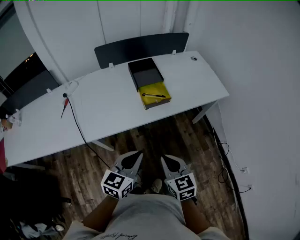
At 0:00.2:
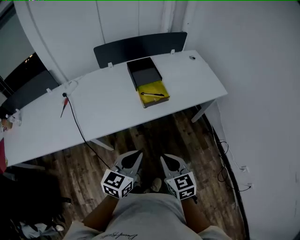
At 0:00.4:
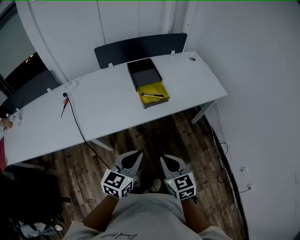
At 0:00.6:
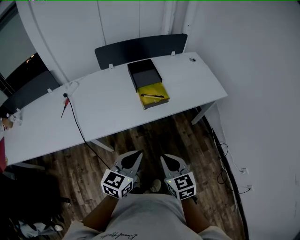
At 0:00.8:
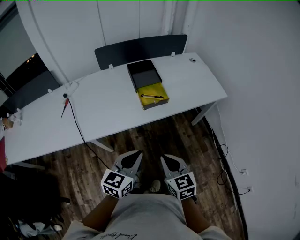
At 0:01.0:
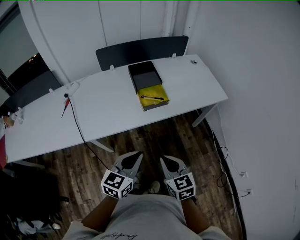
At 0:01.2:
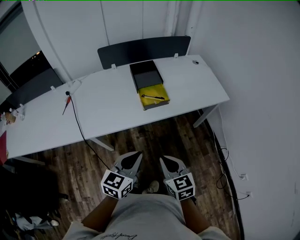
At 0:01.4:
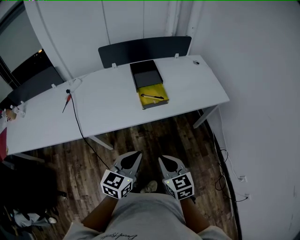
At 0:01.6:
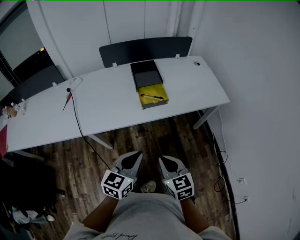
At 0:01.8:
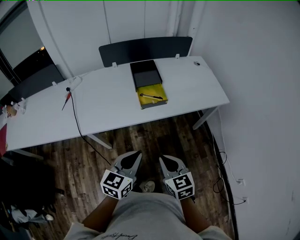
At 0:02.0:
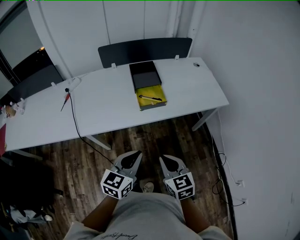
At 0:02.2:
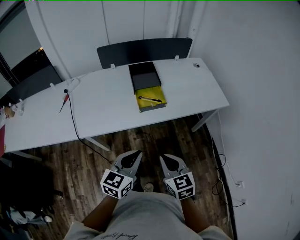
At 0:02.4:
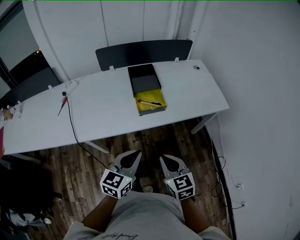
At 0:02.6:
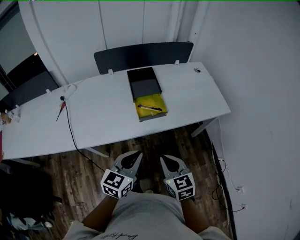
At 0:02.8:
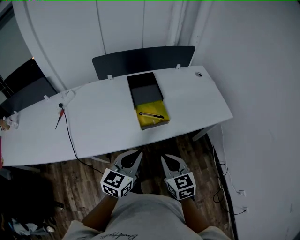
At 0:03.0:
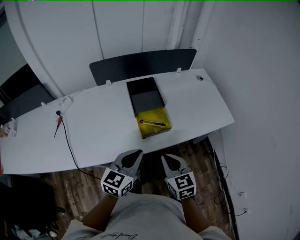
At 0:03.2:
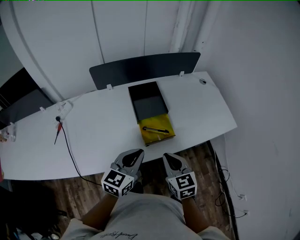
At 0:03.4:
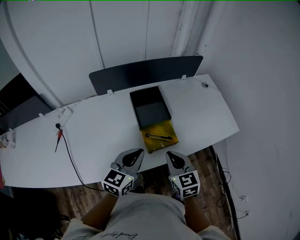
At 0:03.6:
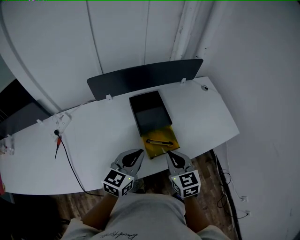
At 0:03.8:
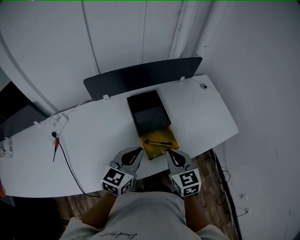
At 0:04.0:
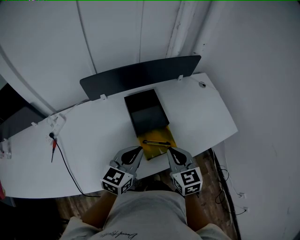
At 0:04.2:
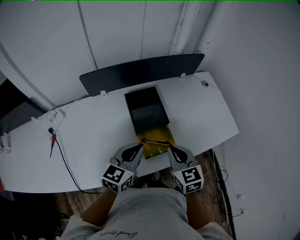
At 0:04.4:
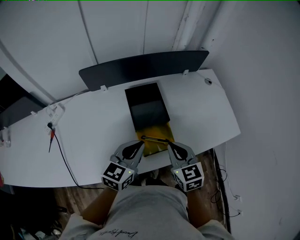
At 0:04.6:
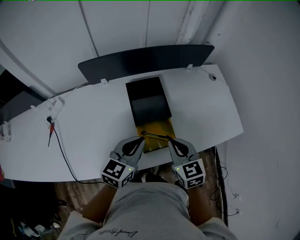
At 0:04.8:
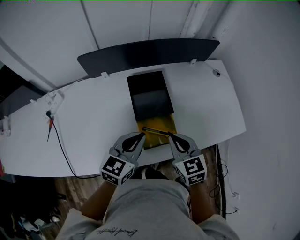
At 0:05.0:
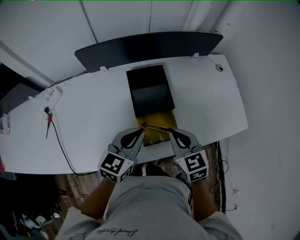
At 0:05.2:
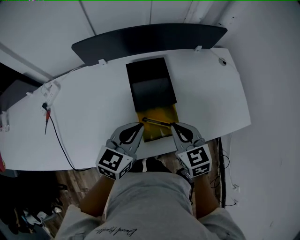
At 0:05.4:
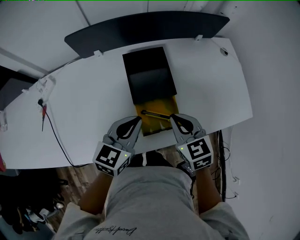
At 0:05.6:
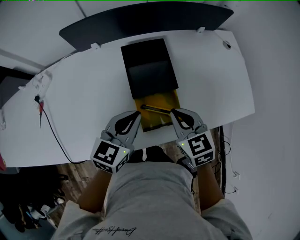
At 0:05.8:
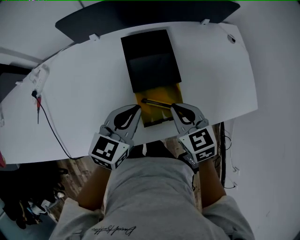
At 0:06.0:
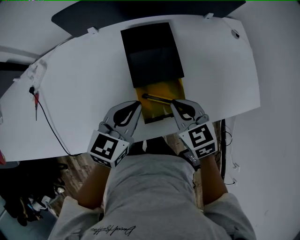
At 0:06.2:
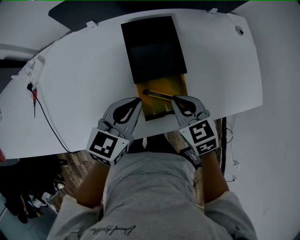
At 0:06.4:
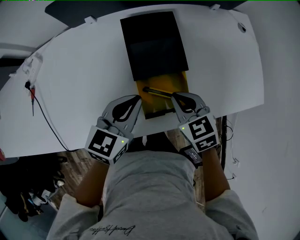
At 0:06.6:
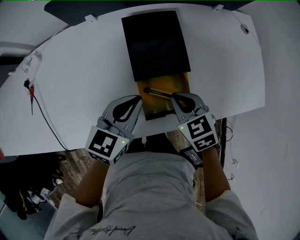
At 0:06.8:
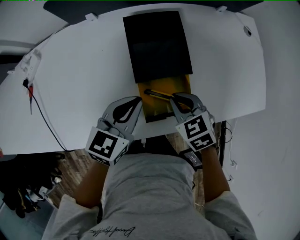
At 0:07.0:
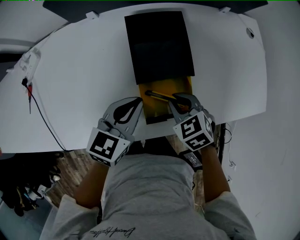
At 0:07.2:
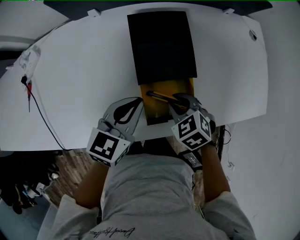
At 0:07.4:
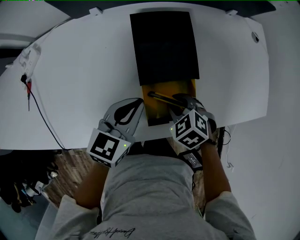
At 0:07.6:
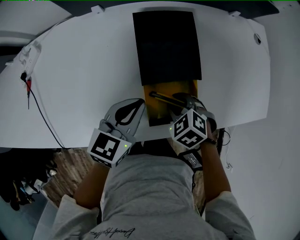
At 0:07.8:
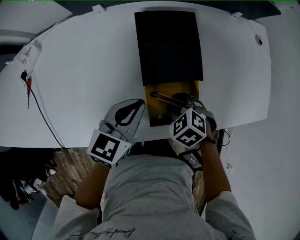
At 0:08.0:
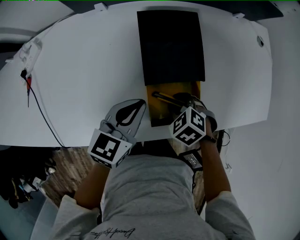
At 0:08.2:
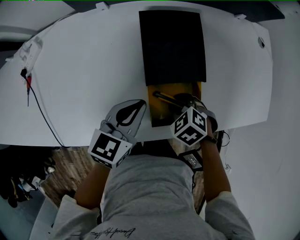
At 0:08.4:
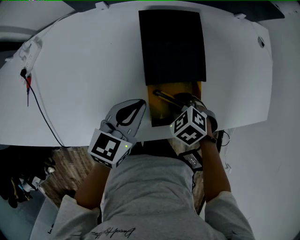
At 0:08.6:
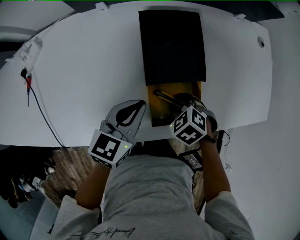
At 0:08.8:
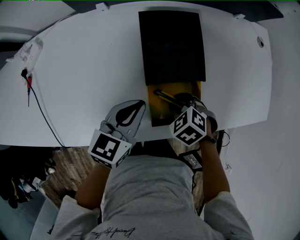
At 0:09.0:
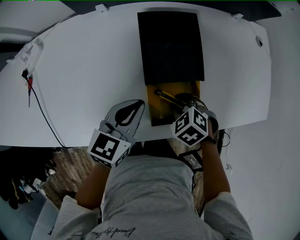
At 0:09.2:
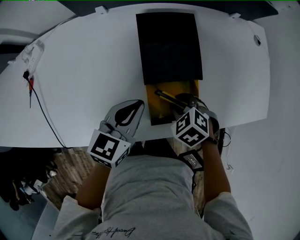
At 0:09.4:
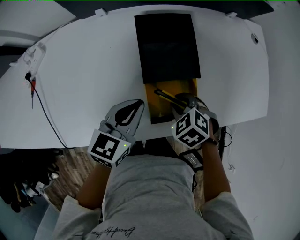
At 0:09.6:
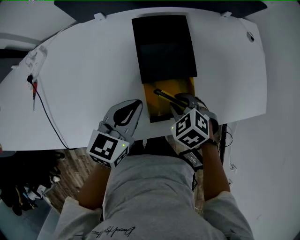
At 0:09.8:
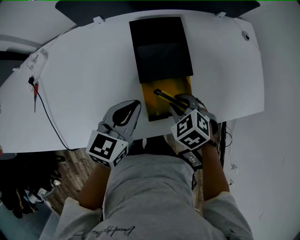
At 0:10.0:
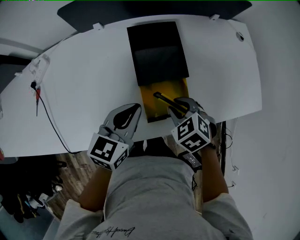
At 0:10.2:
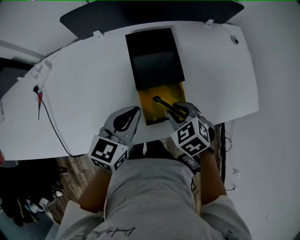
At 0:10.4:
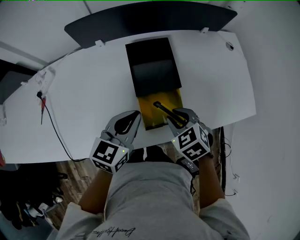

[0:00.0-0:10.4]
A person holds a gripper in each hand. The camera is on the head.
0:00.0 to 0:01.4: The grippers move only a little.
0:01.4 to 0:03.0: Both grippers move forward, about 20 cm.
0:03.0 to 0:04.4: Both grippers move forward, some 20 cm.
0:04.4 to 0:06.0: The right gripper heads downward and forward, covering some 10 cm; the left gripper shifts about 10 cm downward.
0:06.0 to 0:07.4: The left gripper is displaced downward by roughly 5 cm, while the right gripper is displaced downward by some 10 cm, rotates approximately 30 degrees, and opens.
0:07.4 to 0:09.0: There are only small adjustments of the grippers.
0:09.0 to 0:10.4: Both grippers move upward, about 10 cm. The right gripper changes its angle by roughly 20 degrees.

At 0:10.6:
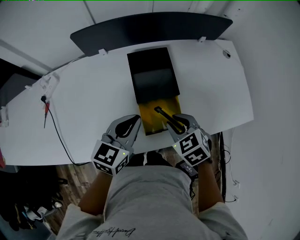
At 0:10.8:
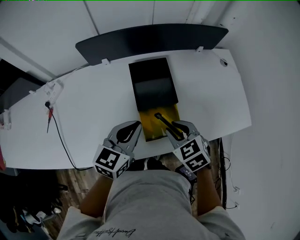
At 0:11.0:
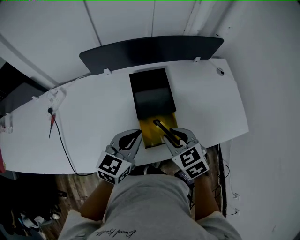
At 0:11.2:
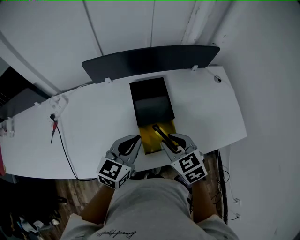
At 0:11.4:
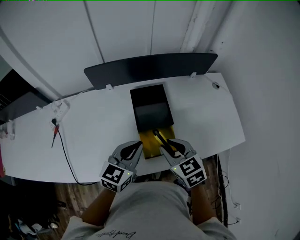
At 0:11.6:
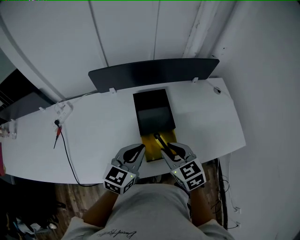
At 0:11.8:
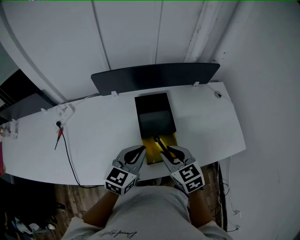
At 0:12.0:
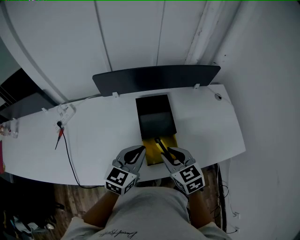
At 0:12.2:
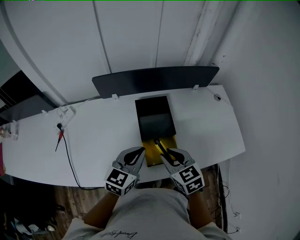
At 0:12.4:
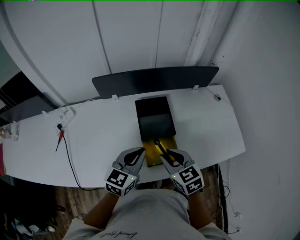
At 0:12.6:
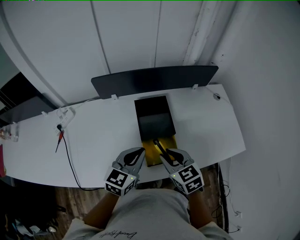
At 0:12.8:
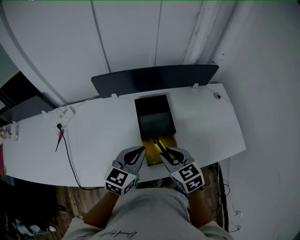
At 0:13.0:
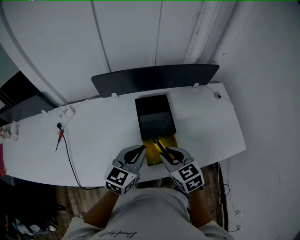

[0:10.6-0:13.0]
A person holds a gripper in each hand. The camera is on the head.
0:10.6 to 0:11.8: The left gripper shifts by about 5 cm. Meanwhile the right gripper travels upward by roughly 10 cm, and swivels some 20 degrees.
0:11.8 to 0:13.0: Both grippers stay about where they are.

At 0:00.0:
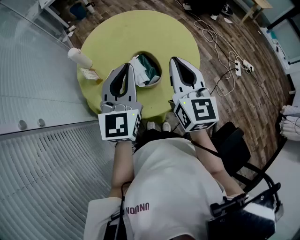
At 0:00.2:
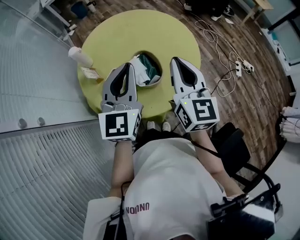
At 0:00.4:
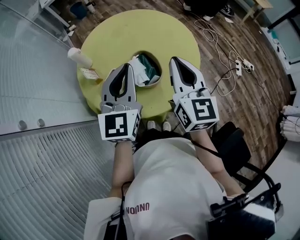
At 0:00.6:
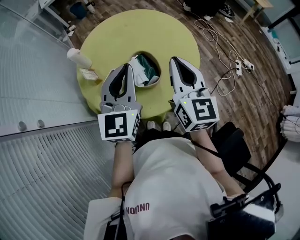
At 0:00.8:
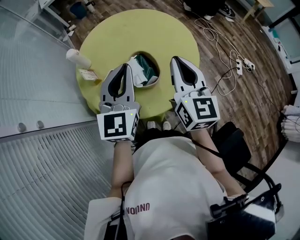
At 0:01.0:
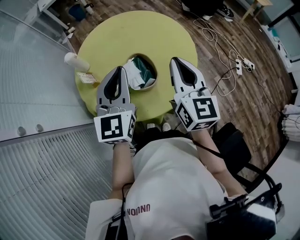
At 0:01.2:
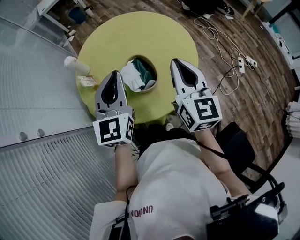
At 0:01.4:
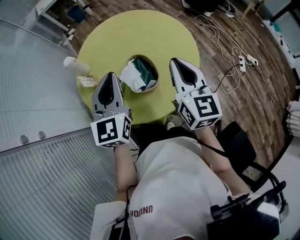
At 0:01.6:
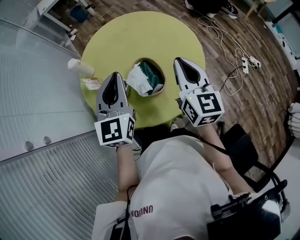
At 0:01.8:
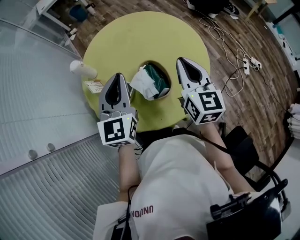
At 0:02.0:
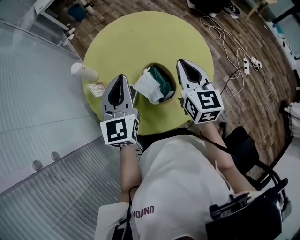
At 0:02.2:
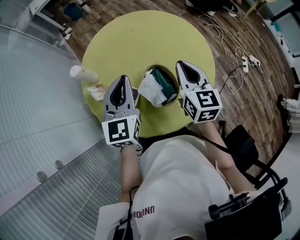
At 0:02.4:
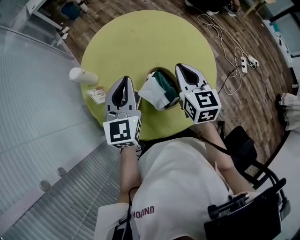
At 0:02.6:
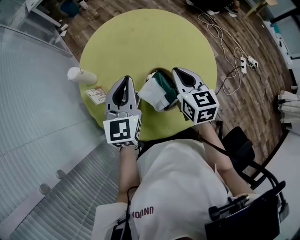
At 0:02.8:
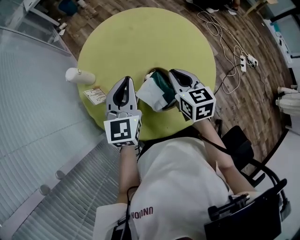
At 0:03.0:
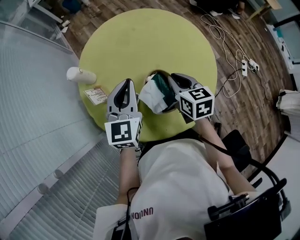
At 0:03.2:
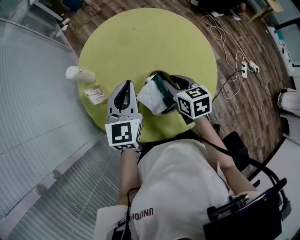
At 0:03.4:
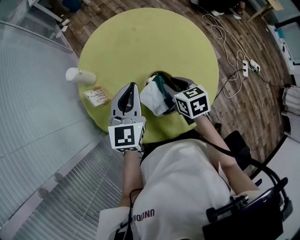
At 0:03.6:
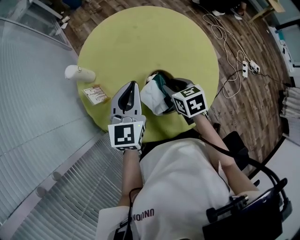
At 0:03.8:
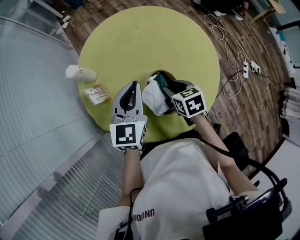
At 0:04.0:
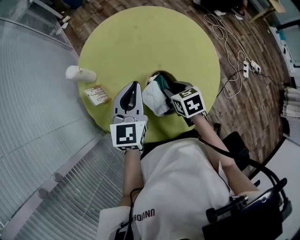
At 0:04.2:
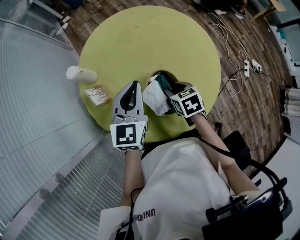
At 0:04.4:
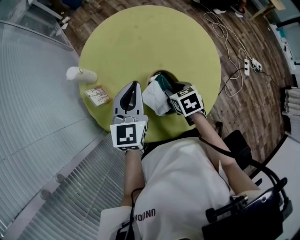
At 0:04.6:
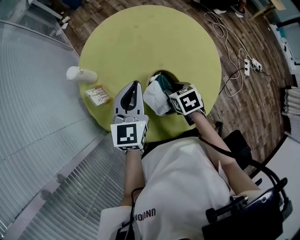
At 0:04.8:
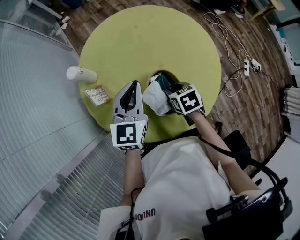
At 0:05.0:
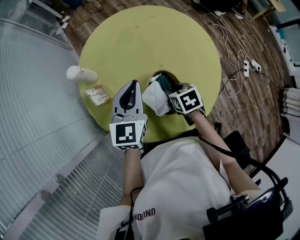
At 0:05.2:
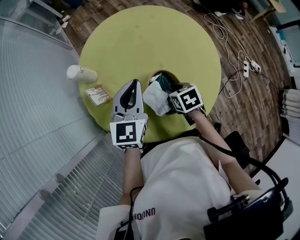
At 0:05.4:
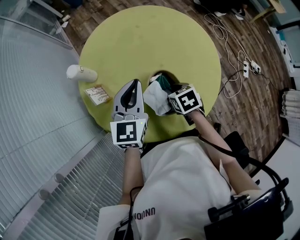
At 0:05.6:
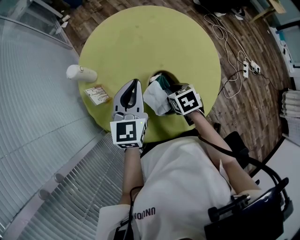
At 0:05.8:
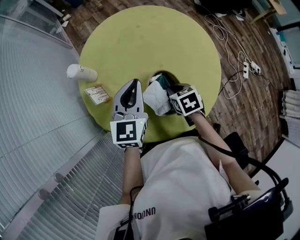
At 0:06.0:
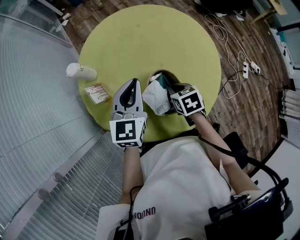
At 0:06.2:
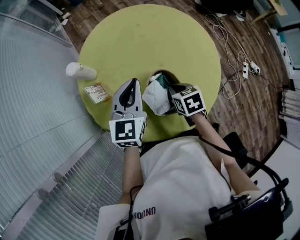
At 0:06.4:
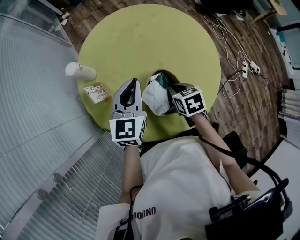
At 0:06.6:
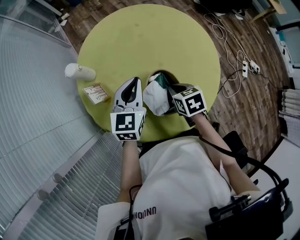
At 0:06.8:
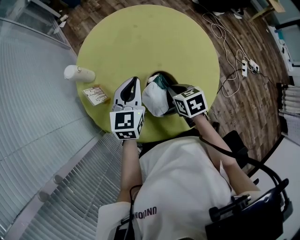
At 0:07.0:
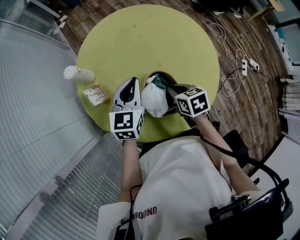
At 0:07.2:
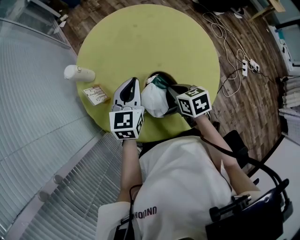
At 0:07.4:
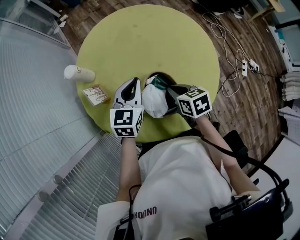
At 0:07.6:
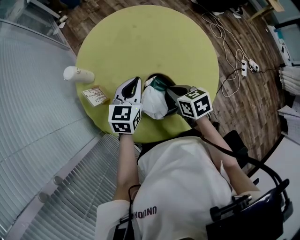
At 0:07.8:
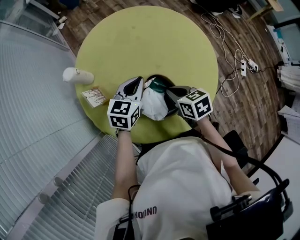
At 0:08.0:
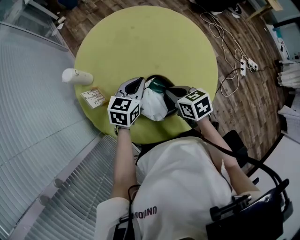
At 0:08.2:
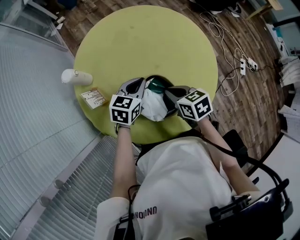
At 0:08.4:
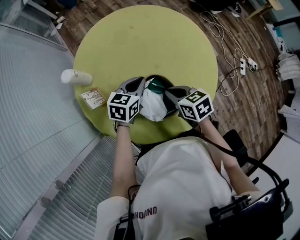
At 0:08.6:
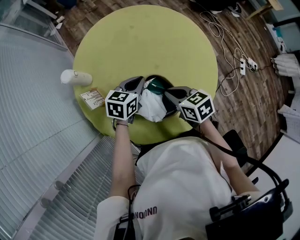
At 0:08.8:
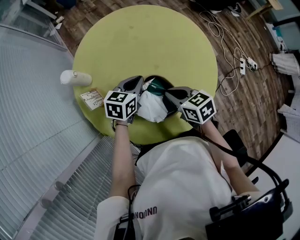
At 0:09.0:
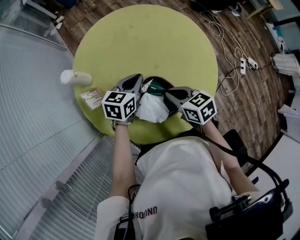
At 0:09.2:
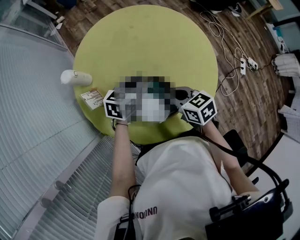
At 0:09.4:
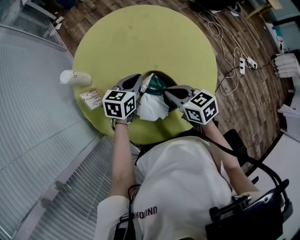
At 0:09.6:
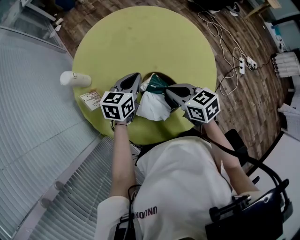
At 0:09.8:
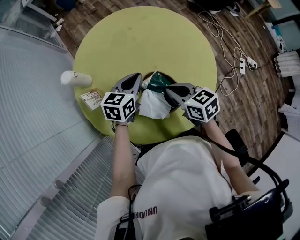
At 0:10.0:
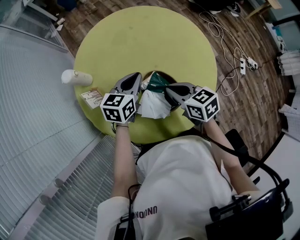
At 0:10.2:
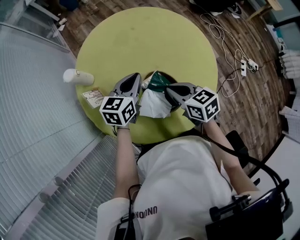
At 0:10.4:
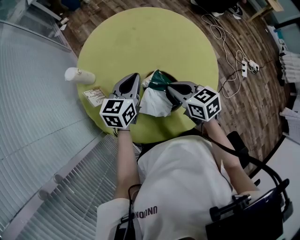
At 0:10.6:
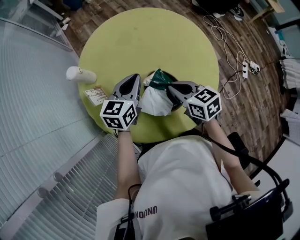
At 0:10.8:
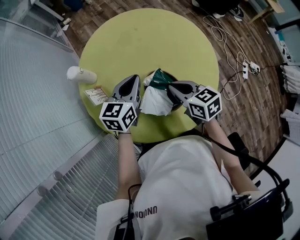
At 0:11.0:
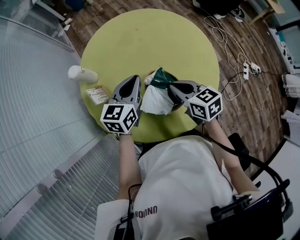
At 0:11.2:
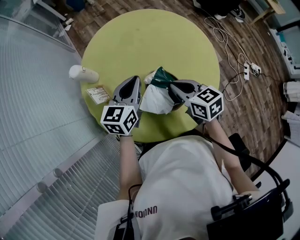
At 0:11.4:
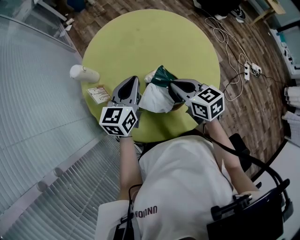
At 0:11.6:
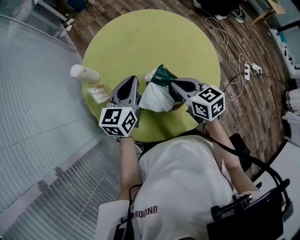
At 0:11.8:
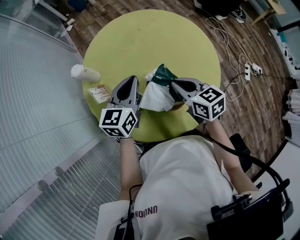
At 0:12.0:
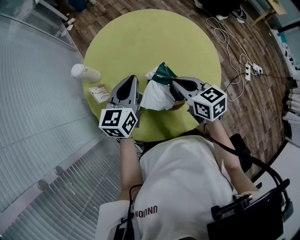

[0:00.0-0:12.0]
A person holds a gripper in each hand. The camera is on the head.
0:00.0 to 0:01.6: The left gripper shifts by approximately 5 cm. Meanwhile the right gripper moves forward, approximately 5 cm.
0:01.6 to 0:03.0: The right gripper travels downward, to the left and forward by approximately 20 cm, and changes its angle by roughly 30 degrees, while the left gripper is displaced downward and forward by some 10 cm.
0:03.0 to 0:04.4: The right gripper travels downward by roughly 10 cm, rotates some 20 degrees, and opens.
0:04.4 to 0:06.0: The right gripper closes its fingers.
0:06.0 to 0:07.6: The left gripper travels downward by about 5 cm.
0:07.6 to 0:09.0: The grippers move only a little.
0:09.0 to 0:10.4: The left gripper moves some 5 cm.
0:10.4 to 0:12.0: The left gripper travels upward by some 5 cm.
